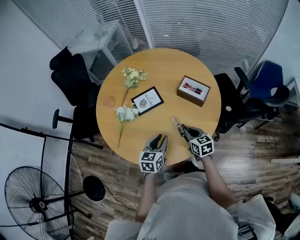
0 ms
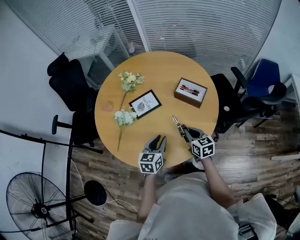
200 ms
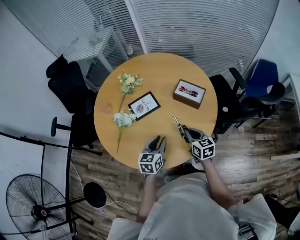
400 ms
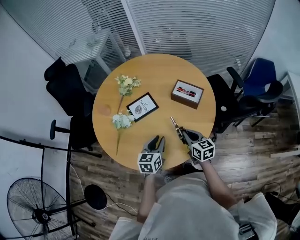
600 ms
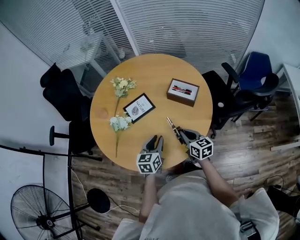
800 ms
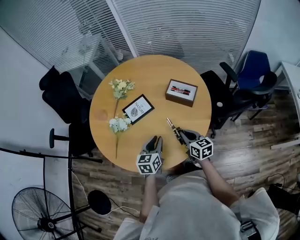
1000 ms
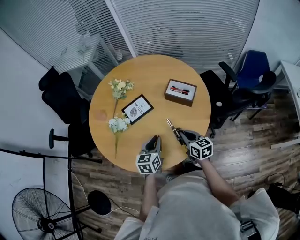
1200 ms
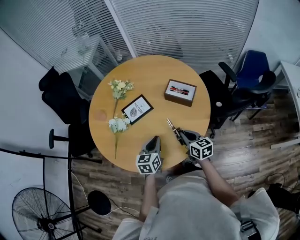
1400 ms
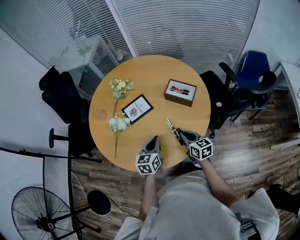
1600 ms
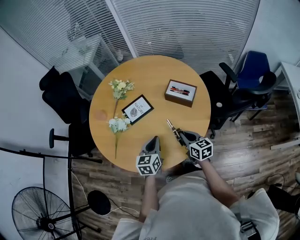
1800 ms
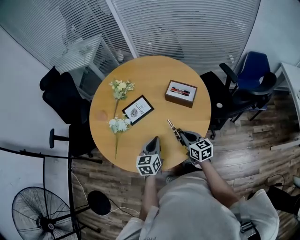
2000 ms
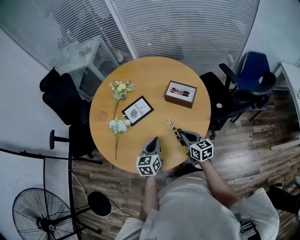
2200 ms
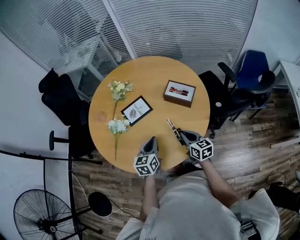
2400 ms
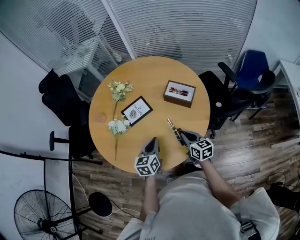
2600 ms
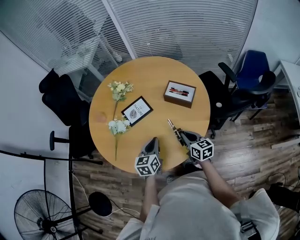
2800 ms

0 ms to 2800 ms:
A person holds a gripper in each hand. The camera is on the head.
0 ms to 1400 ms: The grippers make only small movements.
1400 ms to 2800 ms: Both grippers stay put.

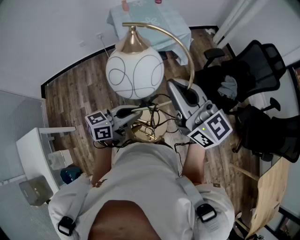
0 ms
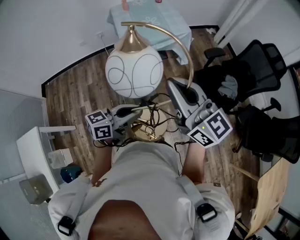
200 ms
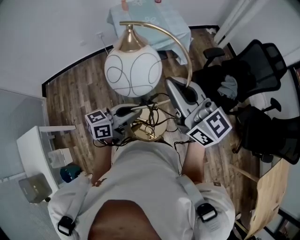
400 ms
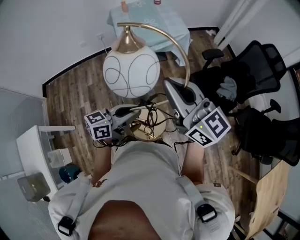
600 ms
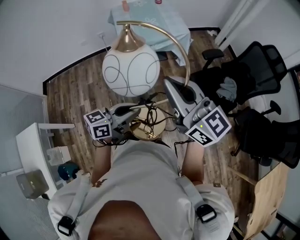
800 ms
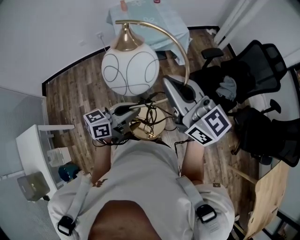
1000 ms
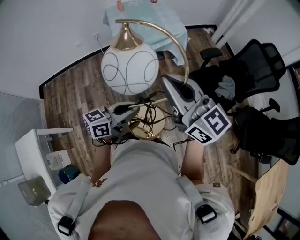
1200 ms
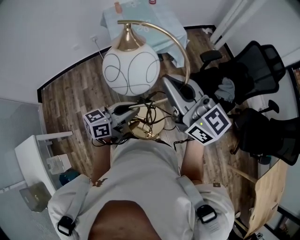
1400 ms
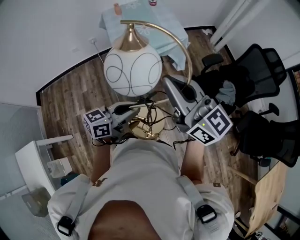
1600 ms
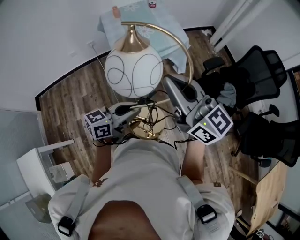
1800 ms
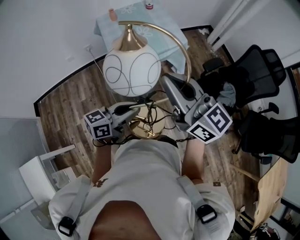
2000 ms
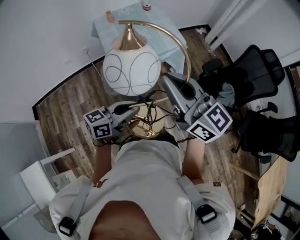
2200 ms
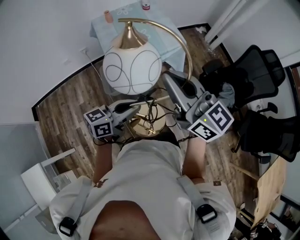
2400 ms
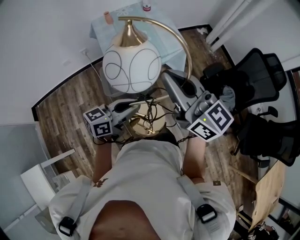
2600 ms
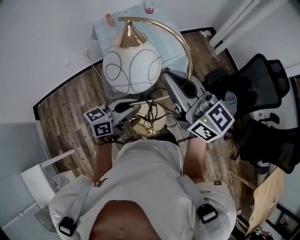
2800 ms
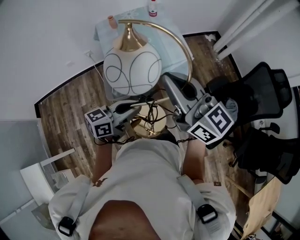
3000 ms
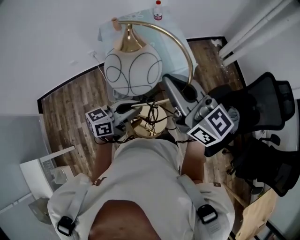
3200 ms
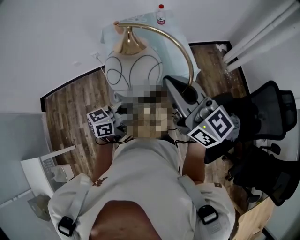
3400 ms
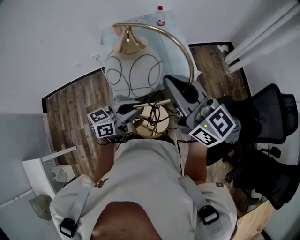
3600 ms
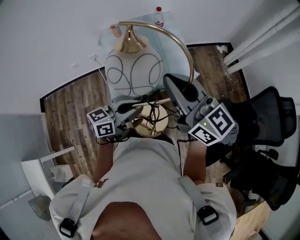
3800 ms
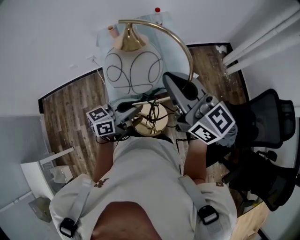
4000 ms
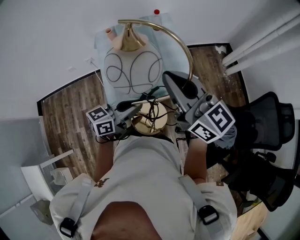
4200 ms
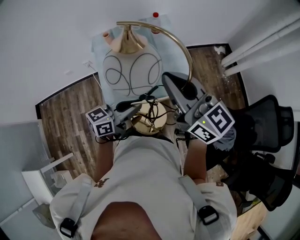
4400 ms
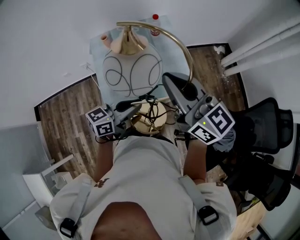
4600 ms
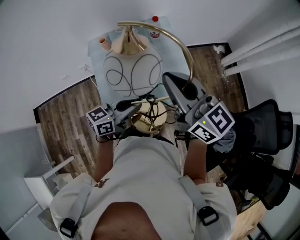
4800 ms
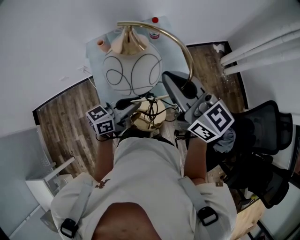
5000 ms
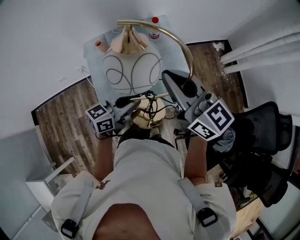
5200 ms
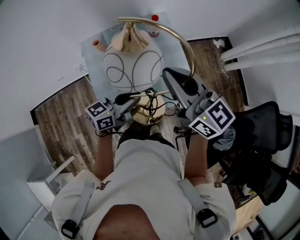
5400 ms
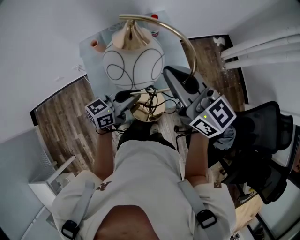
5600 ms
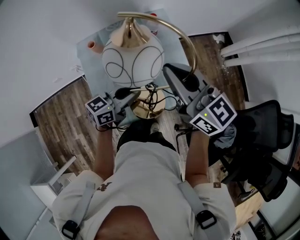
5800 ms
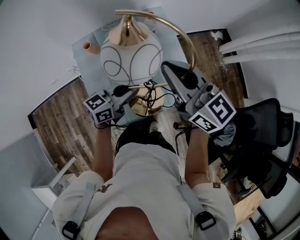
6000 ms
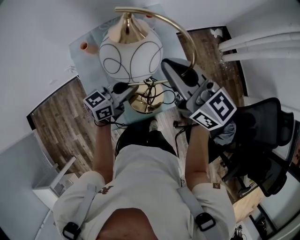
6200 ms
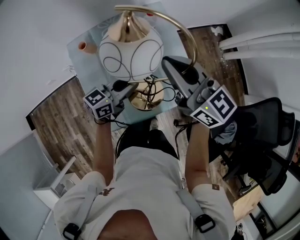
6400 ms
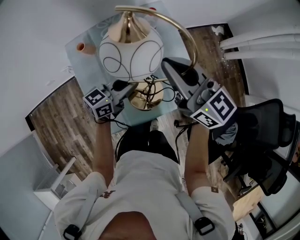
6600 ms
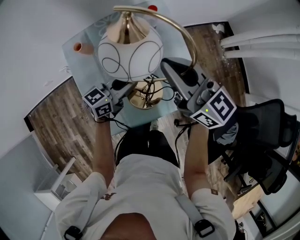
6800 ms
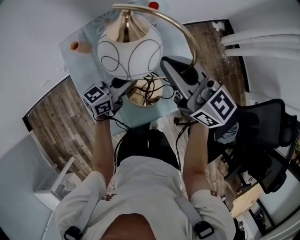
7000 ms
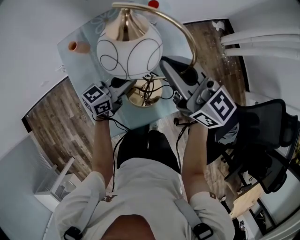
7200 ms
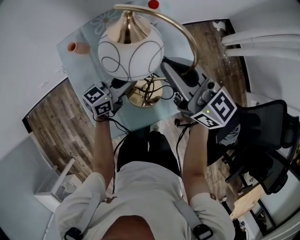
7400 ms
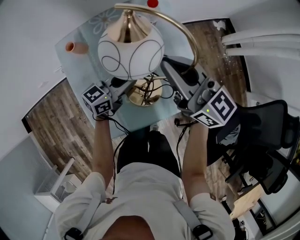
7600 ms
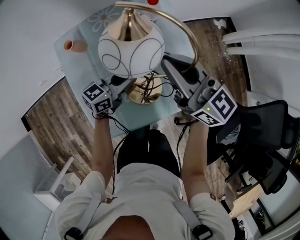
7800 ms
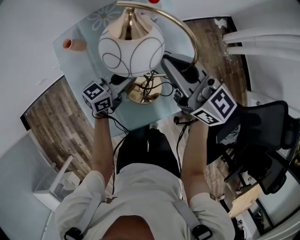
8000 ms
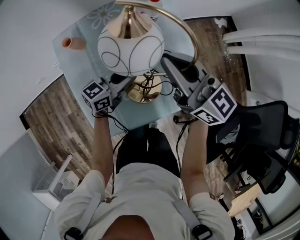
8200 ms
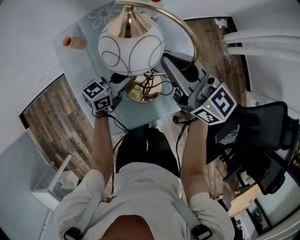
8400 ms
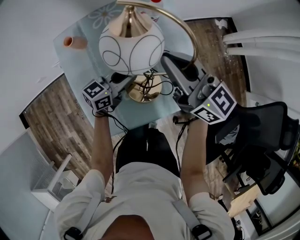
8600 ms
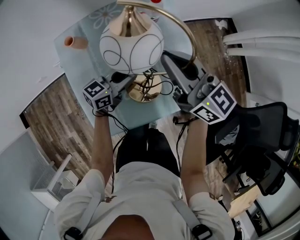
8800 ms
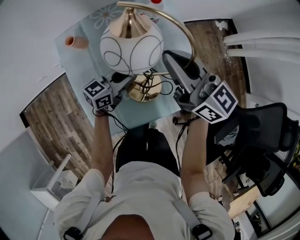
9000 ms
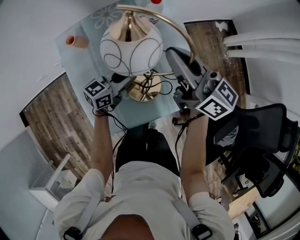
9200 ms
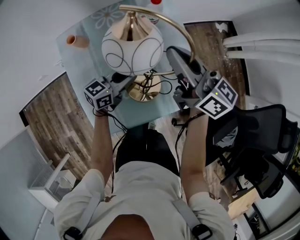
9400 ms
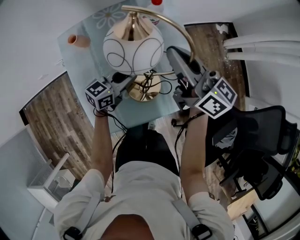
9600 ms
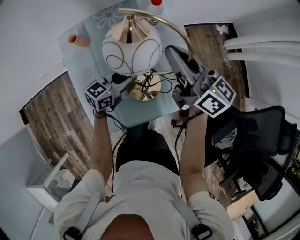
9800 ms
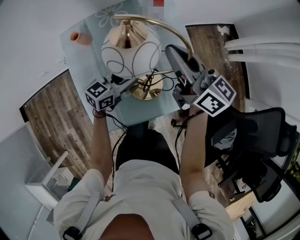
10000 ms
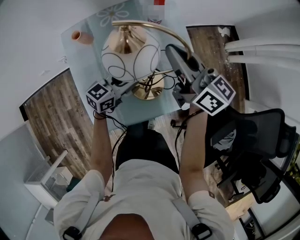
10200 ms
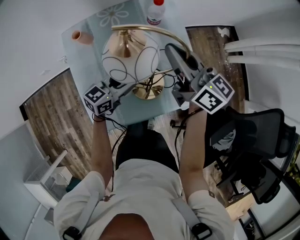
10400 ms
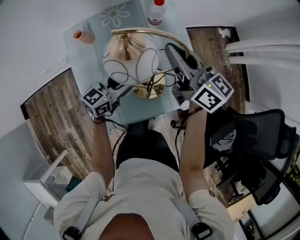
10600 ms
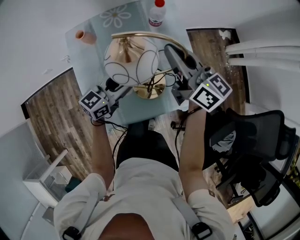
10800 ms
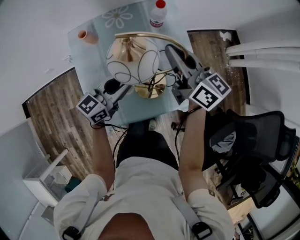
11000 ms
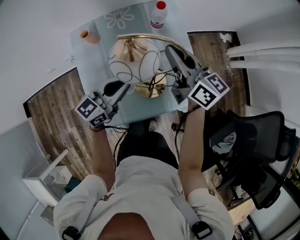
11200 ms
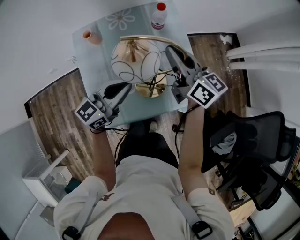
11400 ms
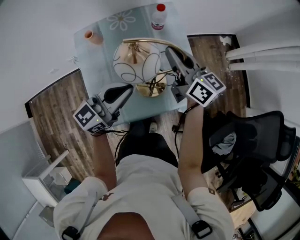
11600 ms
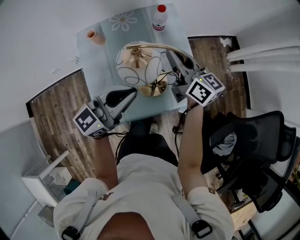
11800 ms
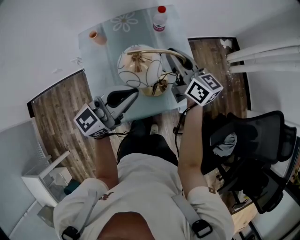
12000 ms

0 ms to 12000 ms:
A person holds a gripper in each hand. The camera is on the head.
0 ms to 1600 ms: The two grippers go roughly 10 cm forward.
1600 ms to 3000 ms: Both grippers move forward, some 25 cm.
3000 ms to 4400 ms: The two grippers go approximately 25 cm forward.
4400 ms to 6000 ms: The right gripper goes approximately 20 cm forward and downward. The left gripper moves forward, roughly 20 cm.
6000 ms to 7600 ms: The grippers both shift downward and forward by approximately 15 cm.
7600 ms to 9000 ms: The grippers move only a little.
9000 ms to 10400 ms: The left gripper opens up.
10400 ms to 12000 ms: The left gripper shifts some 20 cm upward and backward, changes its angle by about 20 degrees, and closes up.

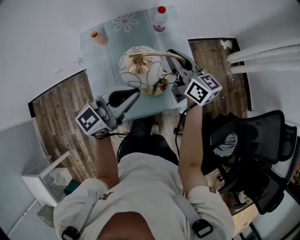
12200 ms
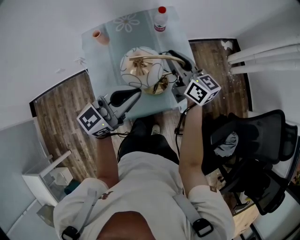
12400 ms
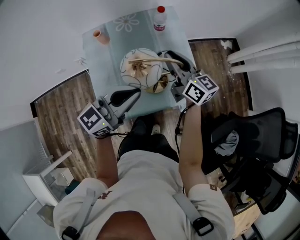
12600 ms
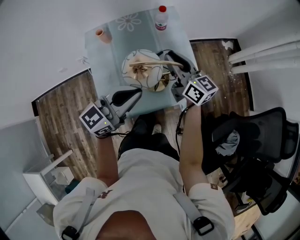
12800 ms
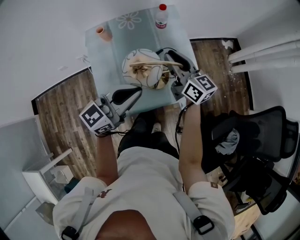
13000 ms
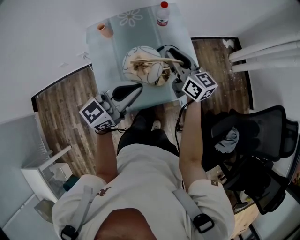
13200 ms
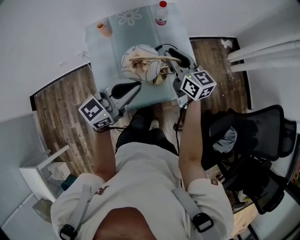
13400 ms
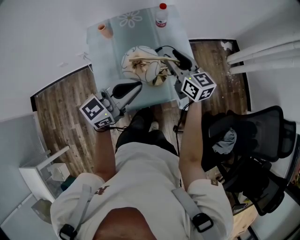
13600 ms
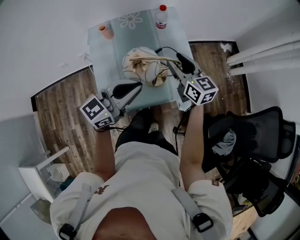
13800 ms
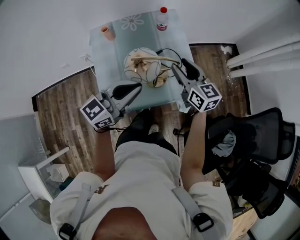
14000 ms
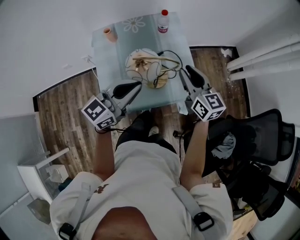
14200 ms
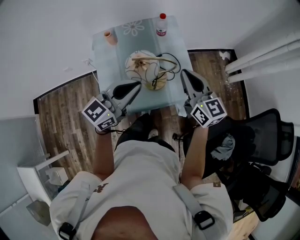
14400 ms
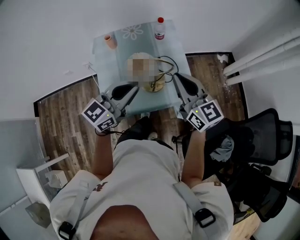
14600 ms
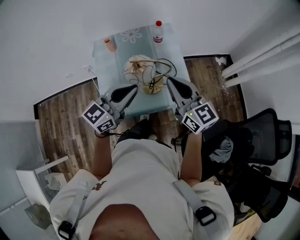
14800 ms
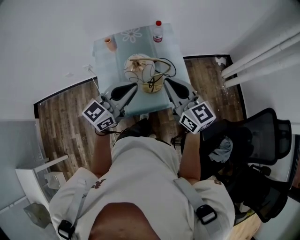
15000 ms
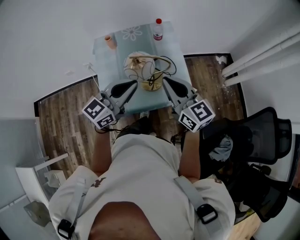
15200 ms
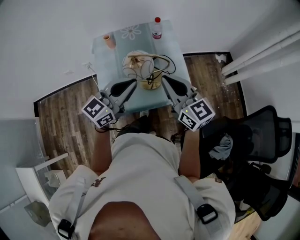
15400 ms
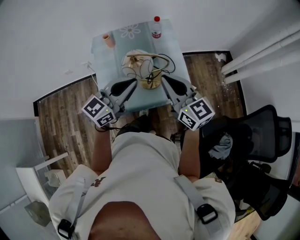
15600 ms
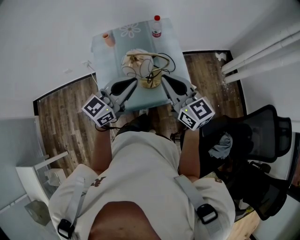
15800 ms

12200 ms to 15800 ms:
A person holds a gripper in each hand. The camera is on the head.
12200 ms to 14000 ms: The two grippers go some 5 cm backward. The right gripper opens up.
14000 ms to 15800 ms: The right gripper is displaced backward and upward by some 15 cm, and closes.

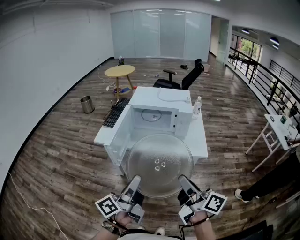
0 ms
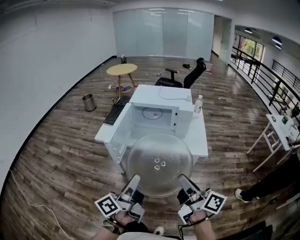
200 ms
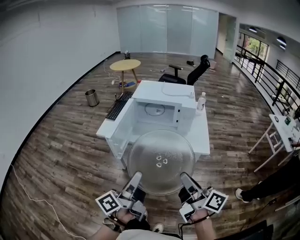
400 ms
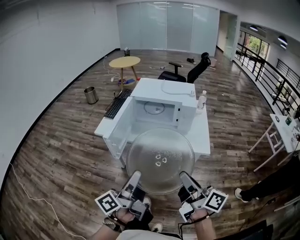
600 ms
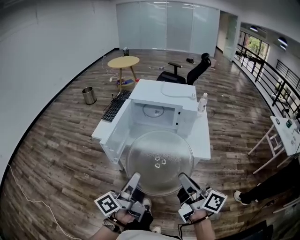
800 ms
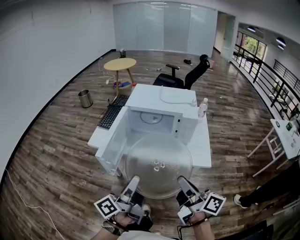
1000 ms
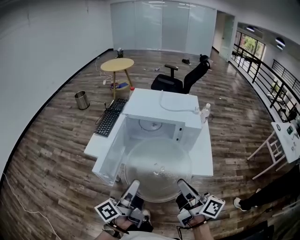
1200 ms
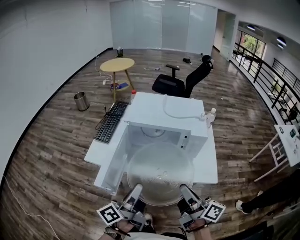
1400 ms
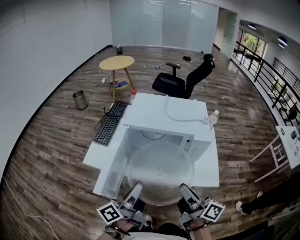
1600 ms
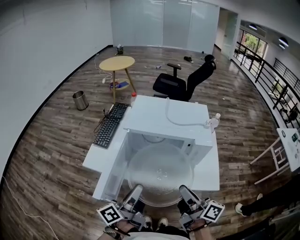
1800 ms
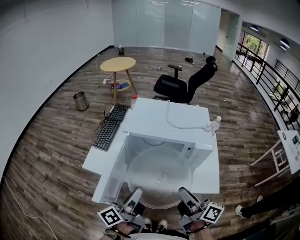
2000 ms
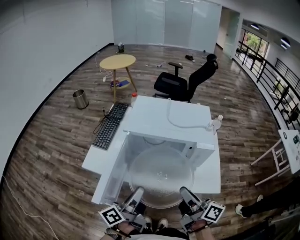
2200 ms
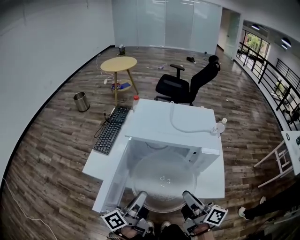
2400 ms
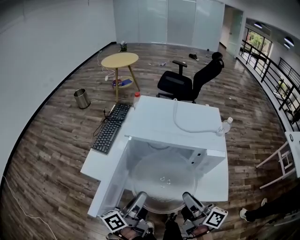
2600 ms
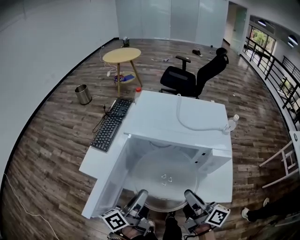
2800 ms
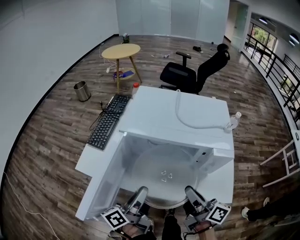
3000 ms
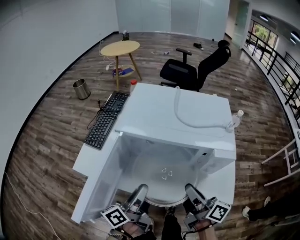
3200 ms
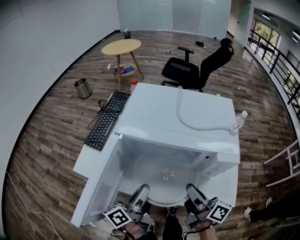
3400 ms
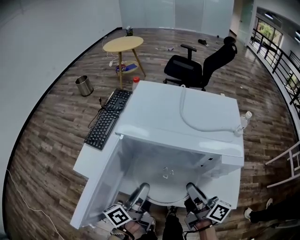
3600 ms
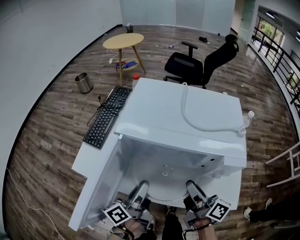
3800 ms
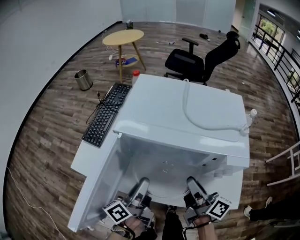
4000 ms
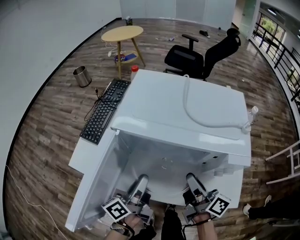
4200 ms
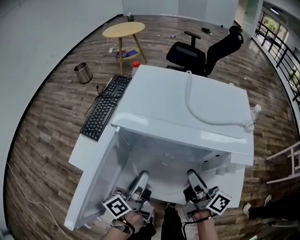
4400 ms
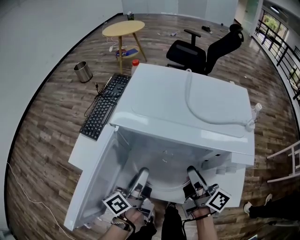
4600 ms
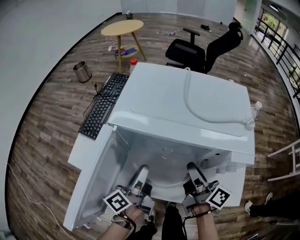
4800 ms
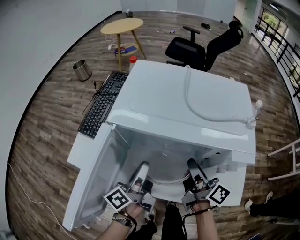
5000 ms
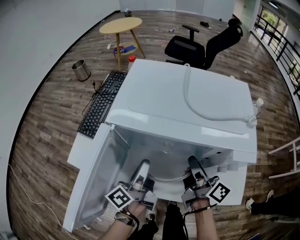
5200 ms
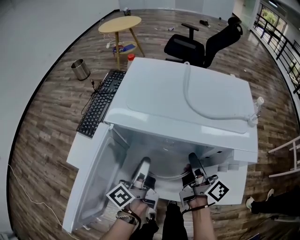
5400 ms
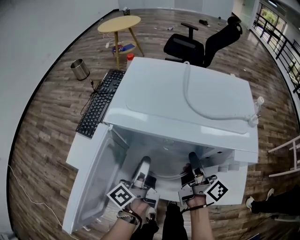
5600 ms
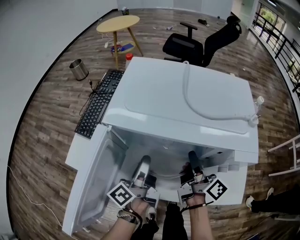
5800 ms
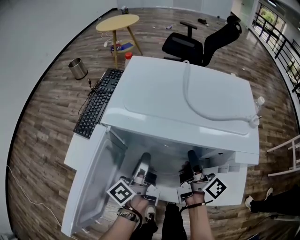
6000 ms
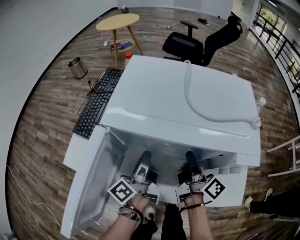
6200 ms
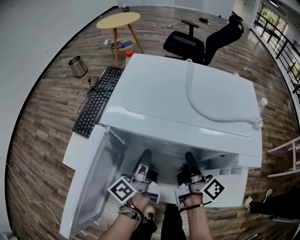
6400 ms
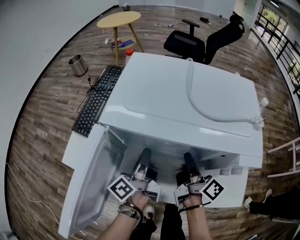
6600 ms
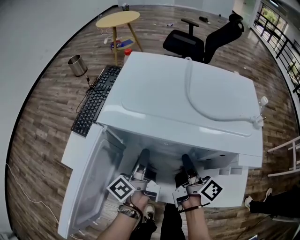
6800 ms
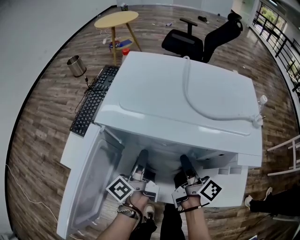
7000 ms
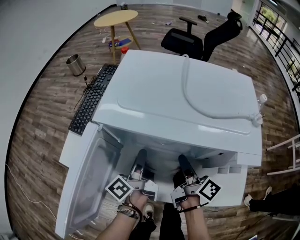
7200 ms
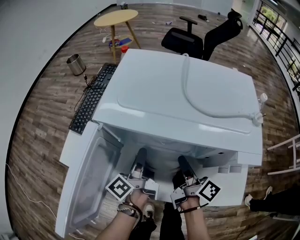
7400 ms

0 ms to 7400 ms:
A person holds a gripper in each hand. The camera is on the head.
0 ms to 1400 ms: Both grippers move forward, approximately 15 cm.
1400 ms to 3000 ms: Both grippers move forward and downward, about 15 cm.
3000 ms to 4400 ms: The grippers both shift forward by about 5 cm.
4400 ms to 6000 ms: The grippers both shift forward by about 5 cm.
6000 ms to 7400 ms: There are only small adjustments of the grippers.
